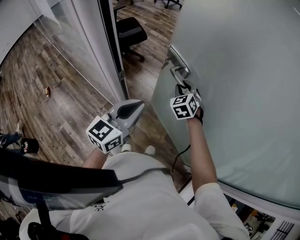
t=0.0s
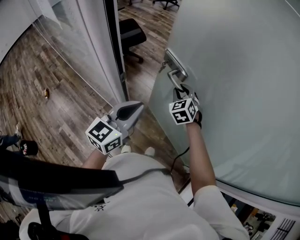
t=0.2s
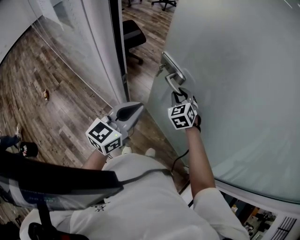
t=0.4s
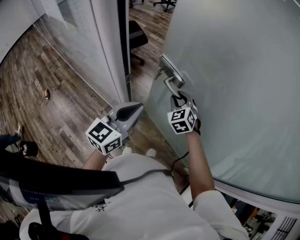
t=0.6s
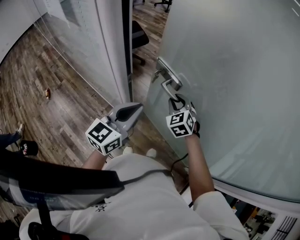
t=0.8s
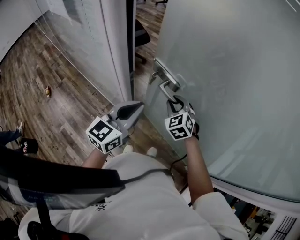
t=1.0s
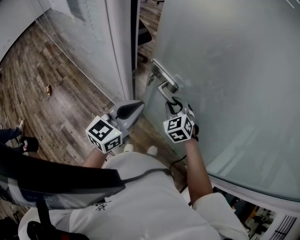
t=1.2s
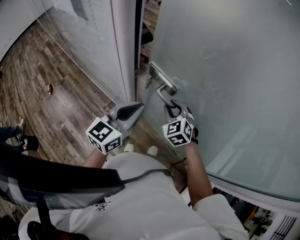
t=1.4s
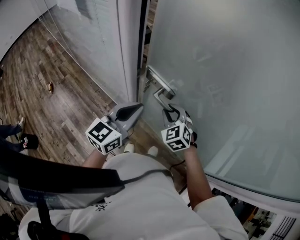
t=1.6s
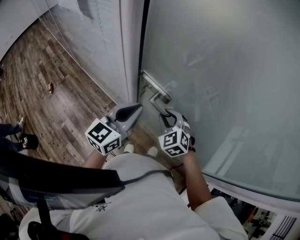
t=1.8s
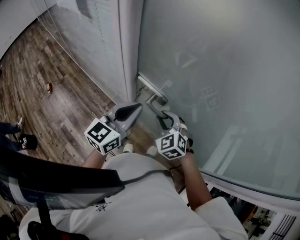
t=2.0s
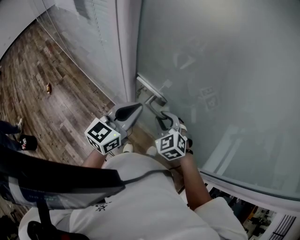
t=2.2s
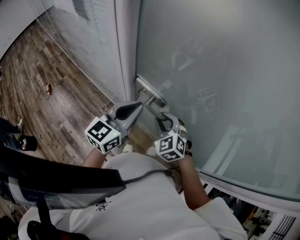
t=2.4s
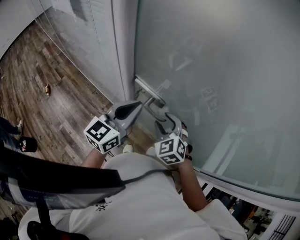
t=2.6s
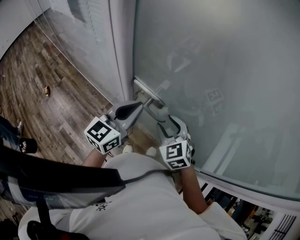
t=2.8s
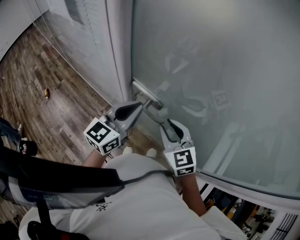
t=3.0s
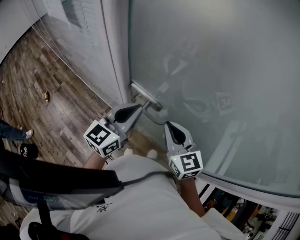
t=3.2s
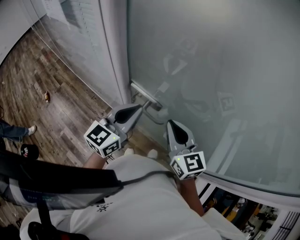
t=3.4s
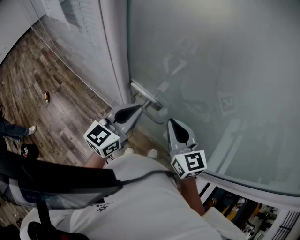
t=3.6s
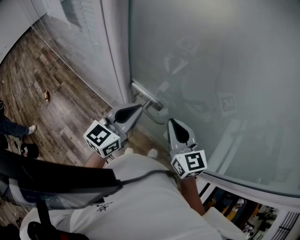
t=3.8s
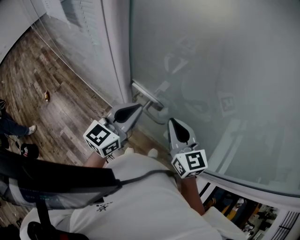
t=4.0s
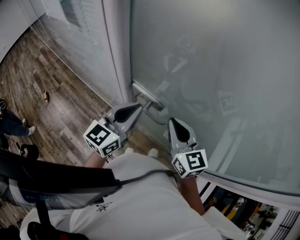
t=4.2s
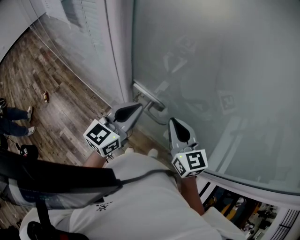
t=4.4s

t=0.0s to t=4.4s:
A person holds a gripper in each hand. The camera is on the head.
t=0.0s to t=1.4s: The right gripper moves backward and to the left, roughly 20 cm. Meanwhile the left gripper goes some 10 cm to the left and backward.
t=1.4s to t=3.0s: The right gripper moves backward and upward, about 10 cm, and changes its angle by some 30 degrees.
t=3.0s to t=4.4s: The right gripper turns by approximately 20 degrees, and closes up.

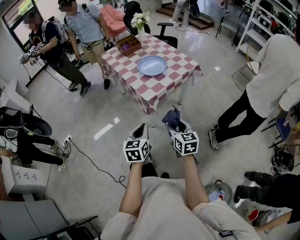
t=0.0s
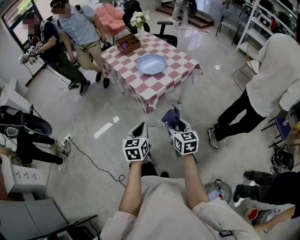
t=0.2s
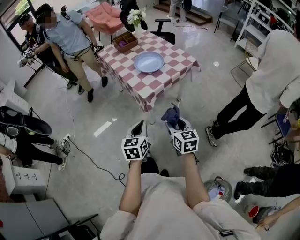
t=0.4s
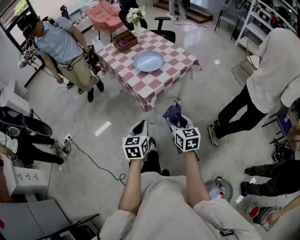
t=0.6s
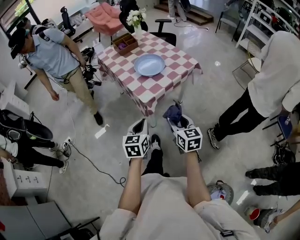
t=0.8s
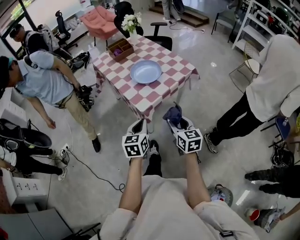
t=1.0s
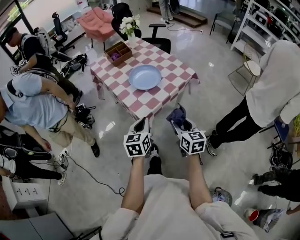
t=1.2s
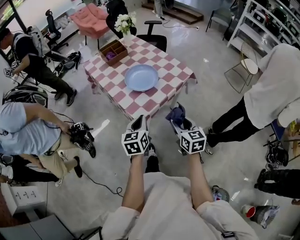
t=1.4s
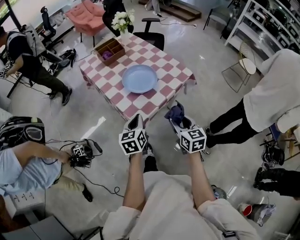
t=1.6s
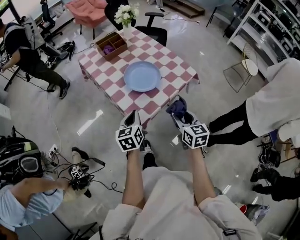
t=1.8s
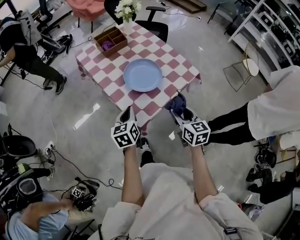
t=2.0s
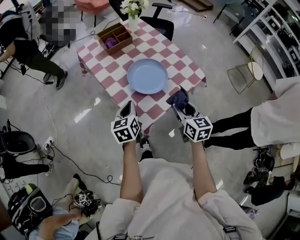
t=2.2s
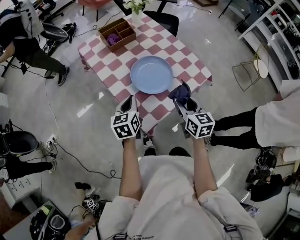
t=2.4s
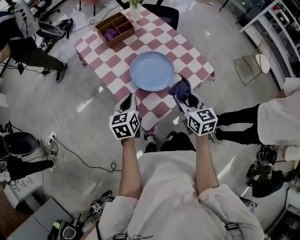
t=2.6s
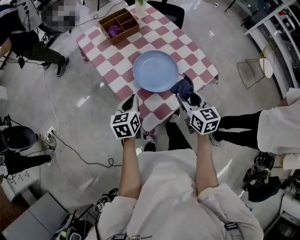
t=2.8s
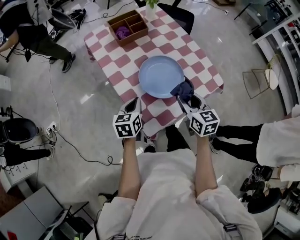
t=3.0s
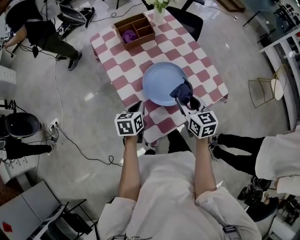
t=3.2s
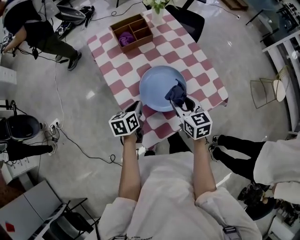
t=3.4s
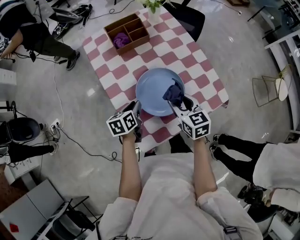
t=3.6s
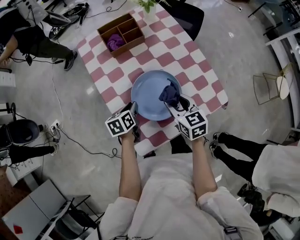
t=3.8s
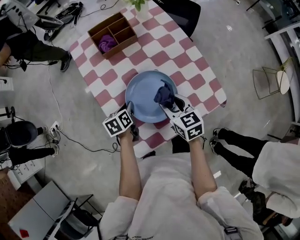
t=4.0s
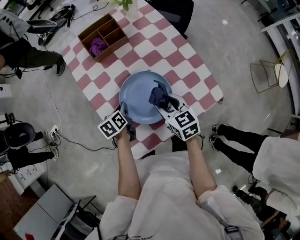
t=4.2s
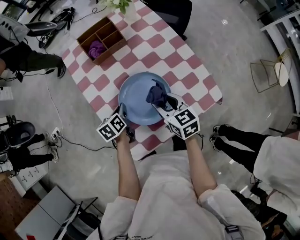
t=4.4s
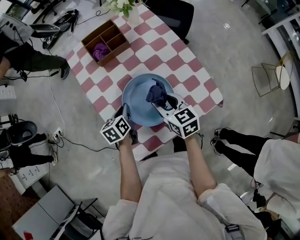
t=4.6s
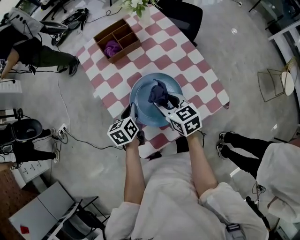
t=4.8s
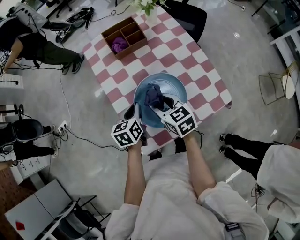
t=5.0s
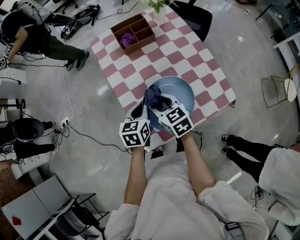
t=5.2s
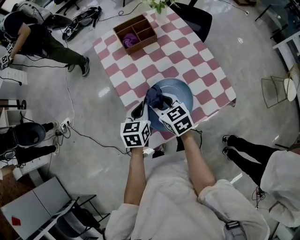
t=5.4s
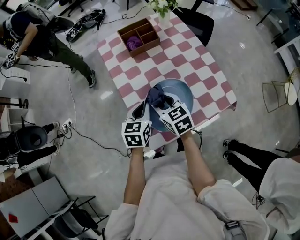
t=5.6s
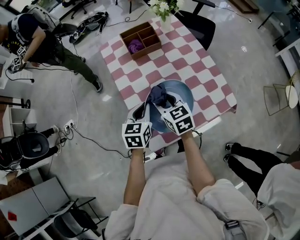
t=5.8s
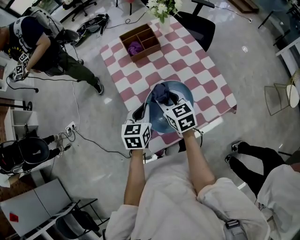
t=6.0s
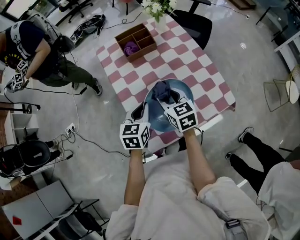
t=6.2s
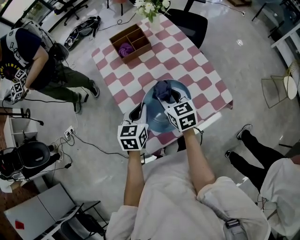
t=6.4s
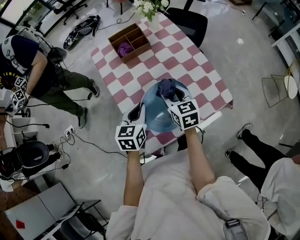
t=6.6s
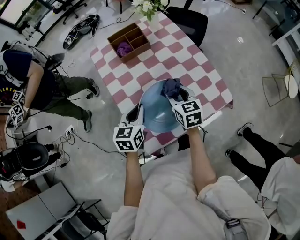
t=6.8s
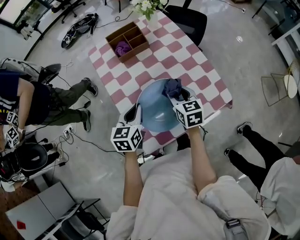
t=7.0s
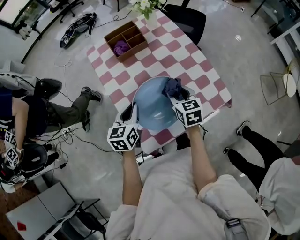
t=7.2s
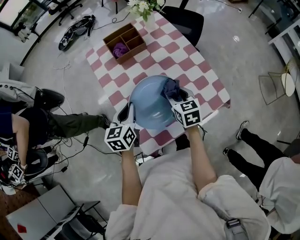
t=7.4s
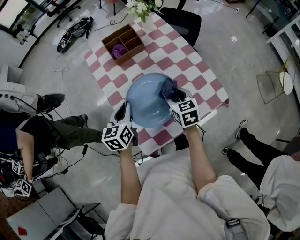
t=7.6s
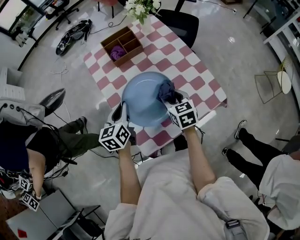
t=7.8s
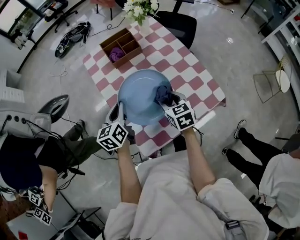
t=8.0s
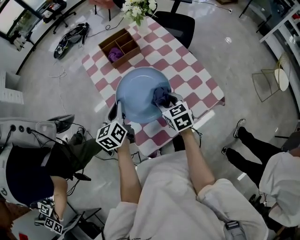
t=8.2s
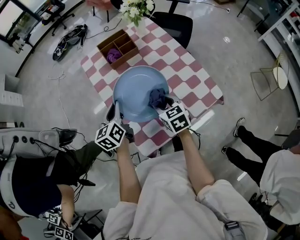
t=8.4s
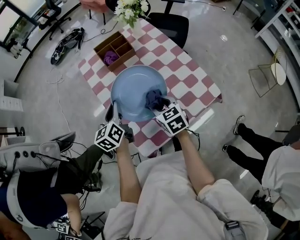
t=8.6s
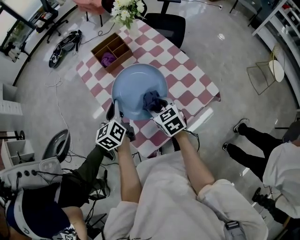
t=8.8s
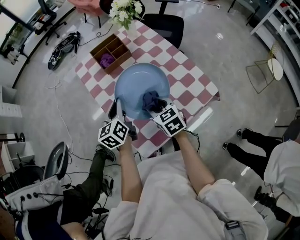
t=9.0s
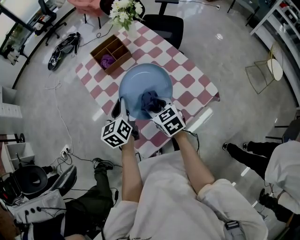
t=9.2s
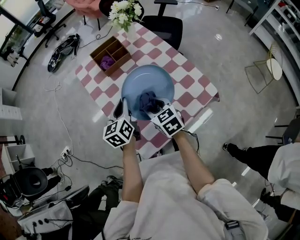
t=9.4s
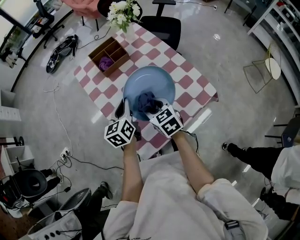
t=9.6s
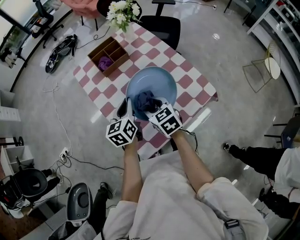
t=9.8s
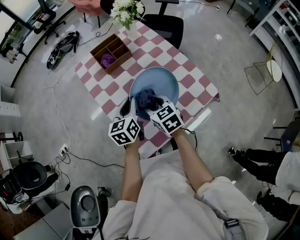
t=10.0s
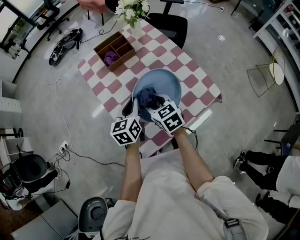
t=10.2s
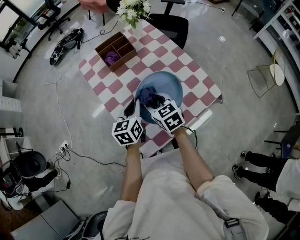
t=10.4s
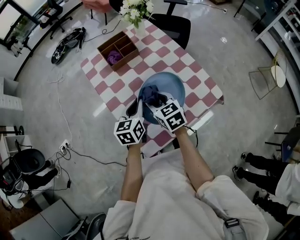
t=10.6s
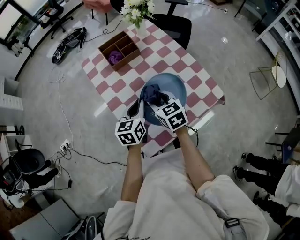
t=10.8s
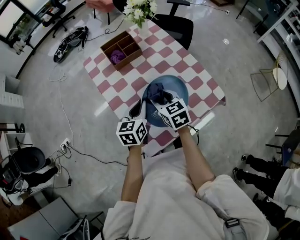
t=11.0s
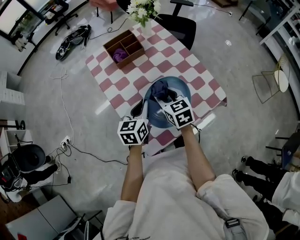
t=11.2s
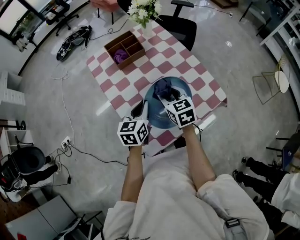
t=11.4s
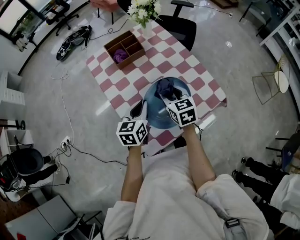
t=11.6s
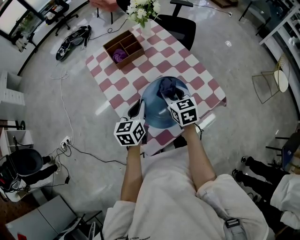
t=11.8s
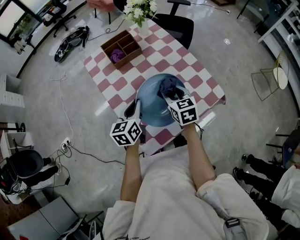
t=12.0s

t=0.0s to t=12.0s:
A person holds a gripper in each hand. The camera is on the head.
t=0.0s to t=1.6s: The two grippers go roughly 25 cm forward.
t=1.6s to t=3.0s: The right gripper shifts roughly 25 cm forward; the left gripper shifts approximately 20 cm forward and downward.
t=3.0s to t=4.4s: The two grippers go some 15 cm forward and downward. The left gripper turns by approximately 30 degrees.
t=4.4s to t=6.0s: The left gripper goes approximately 15 cm upward and backward, and changes its angle by approximately 30 degrees. The right gripper is displaced to the left and upward by some 10 cm.
t=6.0s to t=7.6s: The right gripper heads to the right, covering roughly 10 cm.
t=7.6s to t=9.0s: The right gripper shifts about 5 cm to the left.
t=9.0s to t=10.4s: The left gripper changes place by about 5 cm.
t=10.4s to t=12.0s: The right gripper moves to the right, approximately 10 cm.

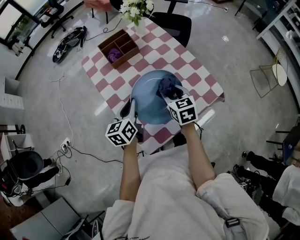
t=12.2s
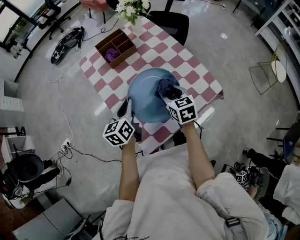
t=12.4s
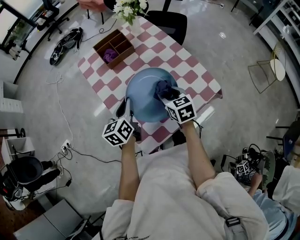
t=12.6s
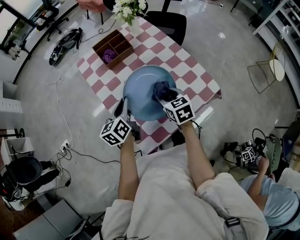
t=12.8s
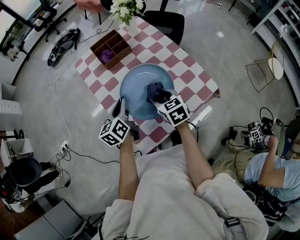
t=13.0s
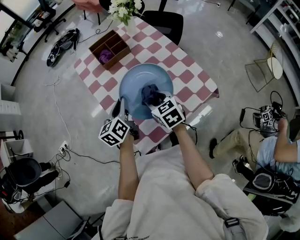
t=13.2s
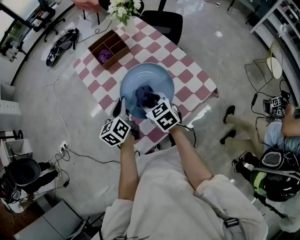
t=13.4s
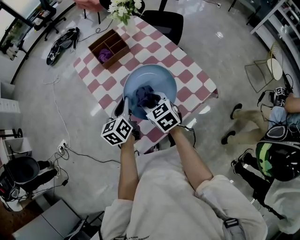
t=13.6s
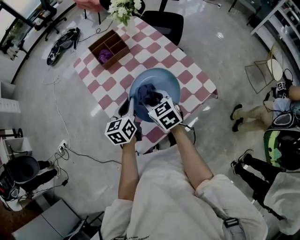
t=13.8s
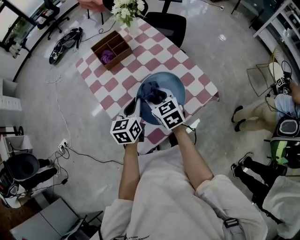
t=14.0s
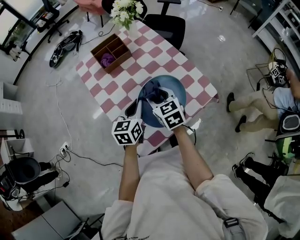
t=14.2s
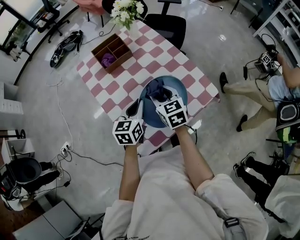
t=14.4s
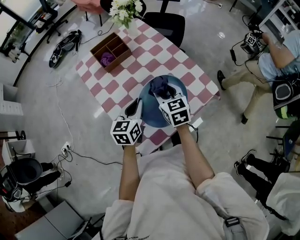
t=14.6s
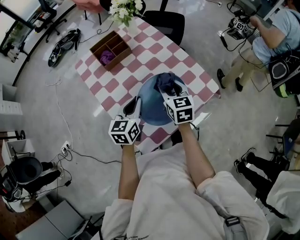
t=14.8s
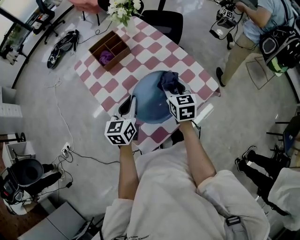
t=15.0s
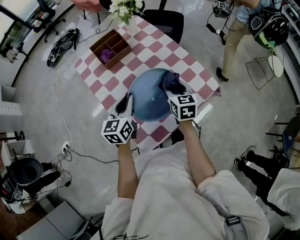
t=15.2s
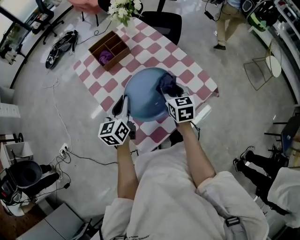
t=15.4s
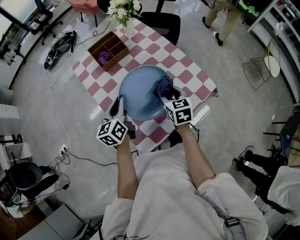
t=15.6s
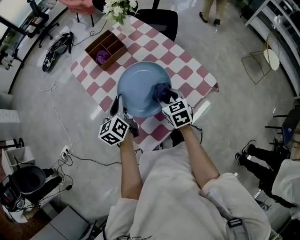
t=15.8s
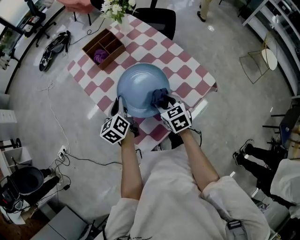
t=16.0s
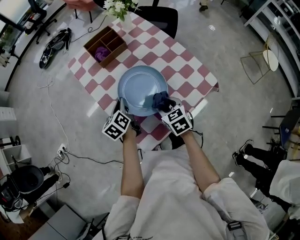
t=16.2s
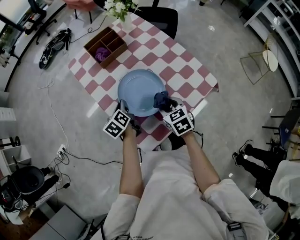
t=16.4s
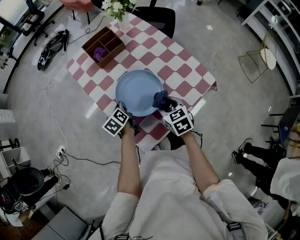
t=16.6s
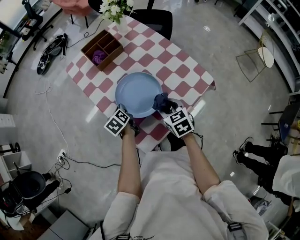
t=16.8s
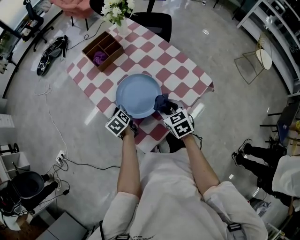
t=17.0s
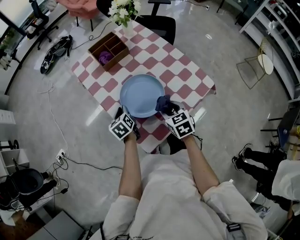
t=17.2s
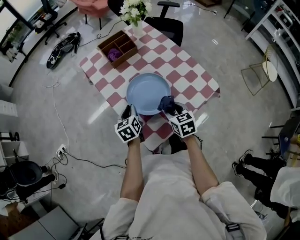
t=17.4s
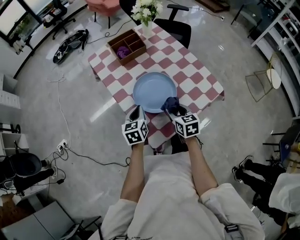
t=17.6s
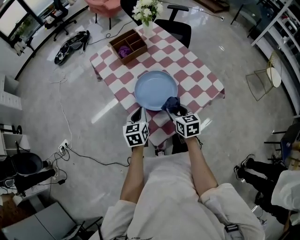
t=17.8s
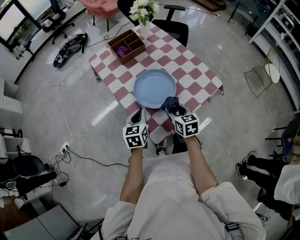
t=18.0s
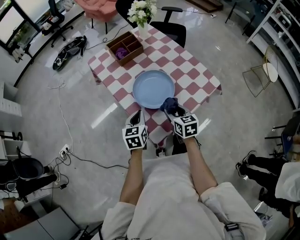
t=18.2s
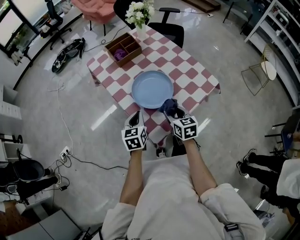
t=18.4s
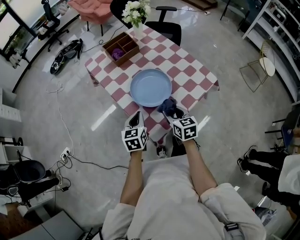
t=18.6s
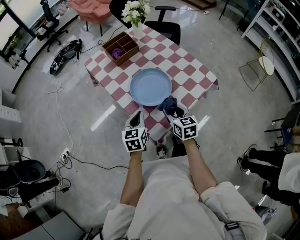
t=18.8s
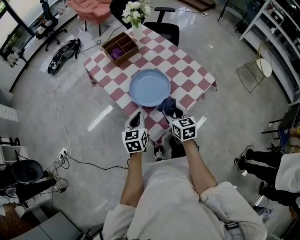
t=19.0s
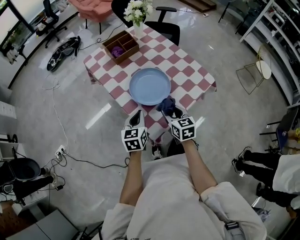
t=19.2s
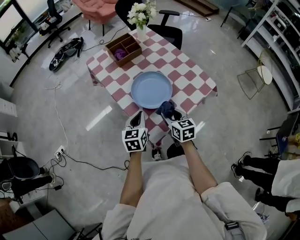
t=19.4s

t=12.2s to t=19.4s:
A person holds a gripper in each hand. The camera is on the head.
t=12.2s to t=13.6s: The right gripper moves to the left, approximately 5 cm.
t=13.6s to t=15.0s: The left gripper swivels some 20 degrees; the right gripper moves to the right and forward, approximately 10 cm, and swivels some 30 degrees.
t=15.0s to t=16.6s: The left gripper is displaced downward and to the left by approximately 15 cm, and turns by about 40 degrees; the right gripper is displaced backward, downward and to the left by approximately 10 cm, and rotates about 20 degrees.
t=16.6s to t=18.0s: The left gripper goes approximately 15 cm backward and upward, and rotates approximately 40 degrees. Meanwhile the right gripper is displaced backward by some 5 cm.
t=18.0s to t=19.4s: The grippers move only a little.
